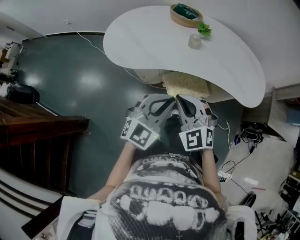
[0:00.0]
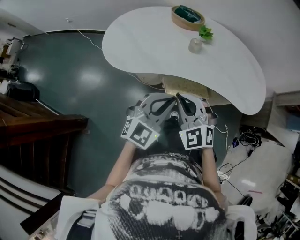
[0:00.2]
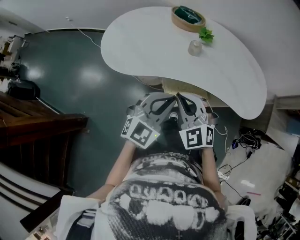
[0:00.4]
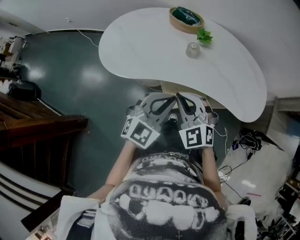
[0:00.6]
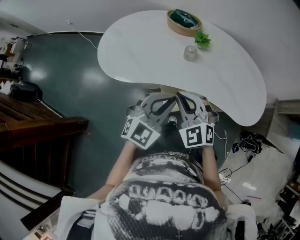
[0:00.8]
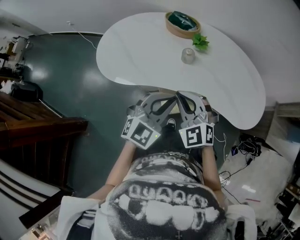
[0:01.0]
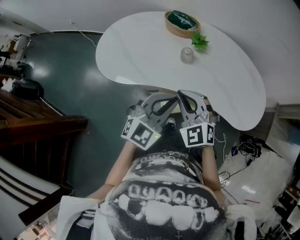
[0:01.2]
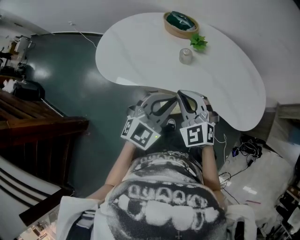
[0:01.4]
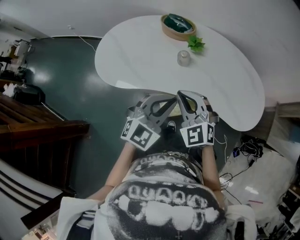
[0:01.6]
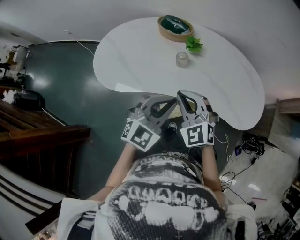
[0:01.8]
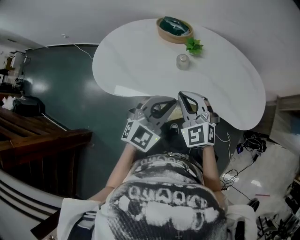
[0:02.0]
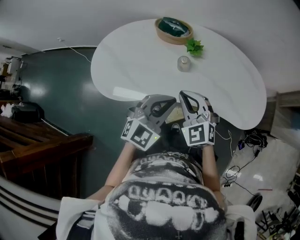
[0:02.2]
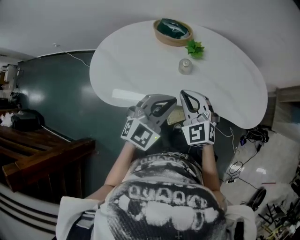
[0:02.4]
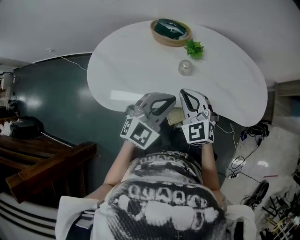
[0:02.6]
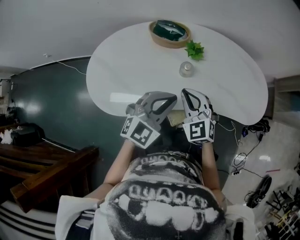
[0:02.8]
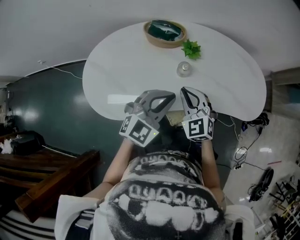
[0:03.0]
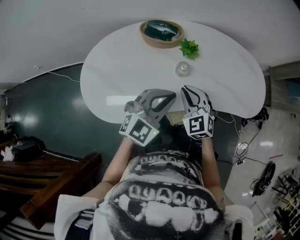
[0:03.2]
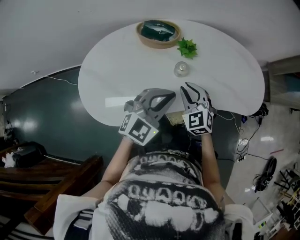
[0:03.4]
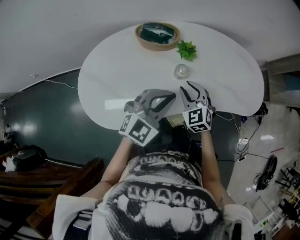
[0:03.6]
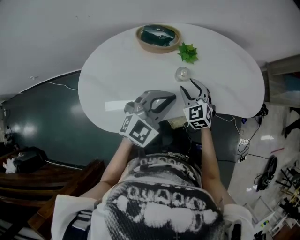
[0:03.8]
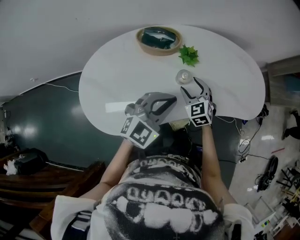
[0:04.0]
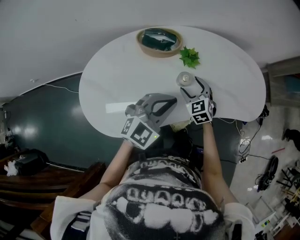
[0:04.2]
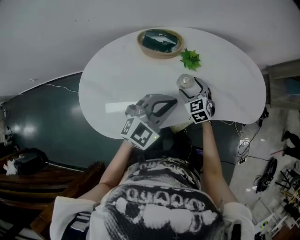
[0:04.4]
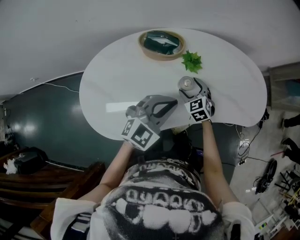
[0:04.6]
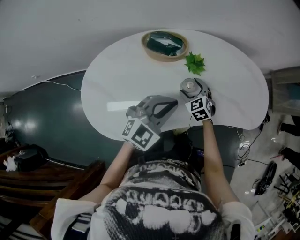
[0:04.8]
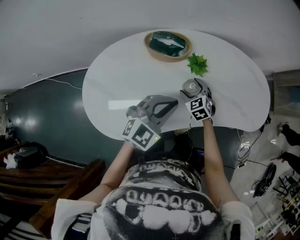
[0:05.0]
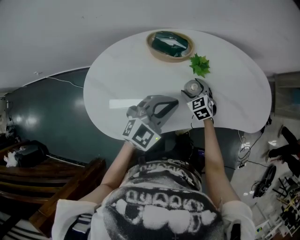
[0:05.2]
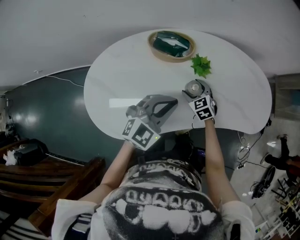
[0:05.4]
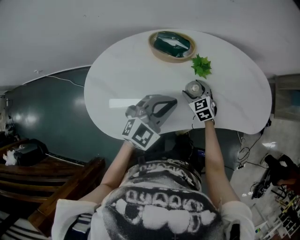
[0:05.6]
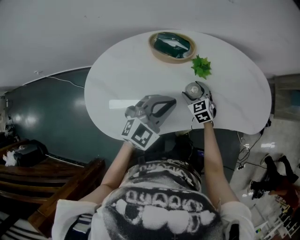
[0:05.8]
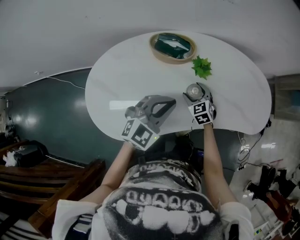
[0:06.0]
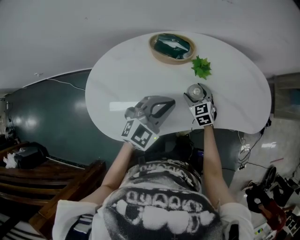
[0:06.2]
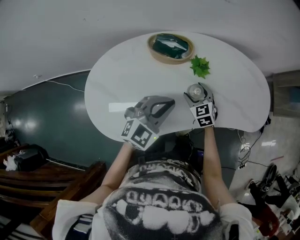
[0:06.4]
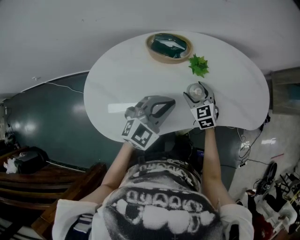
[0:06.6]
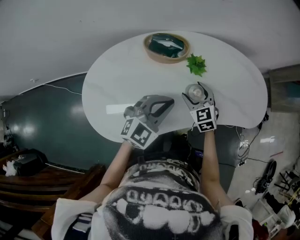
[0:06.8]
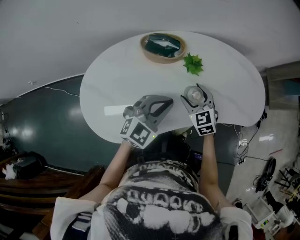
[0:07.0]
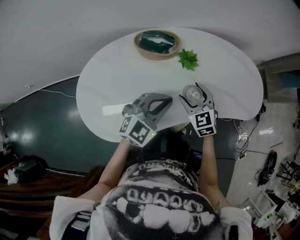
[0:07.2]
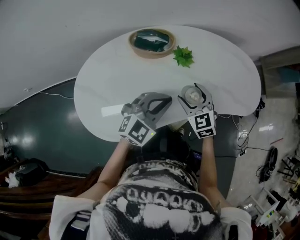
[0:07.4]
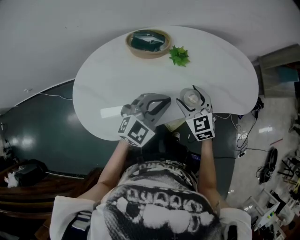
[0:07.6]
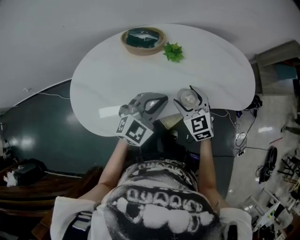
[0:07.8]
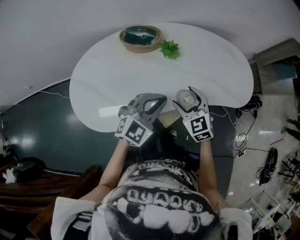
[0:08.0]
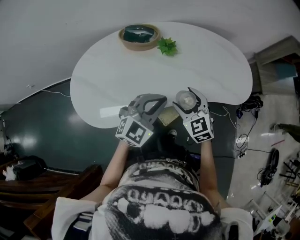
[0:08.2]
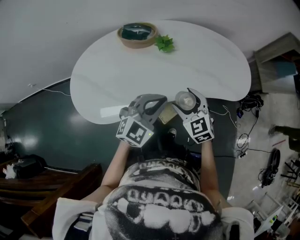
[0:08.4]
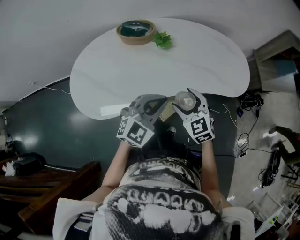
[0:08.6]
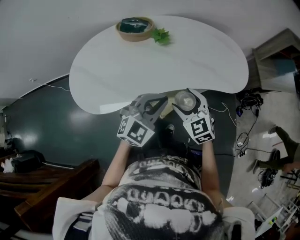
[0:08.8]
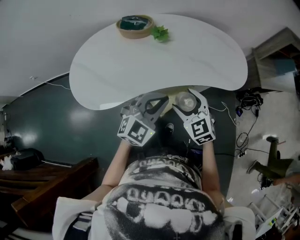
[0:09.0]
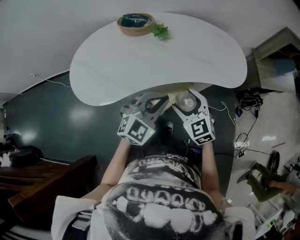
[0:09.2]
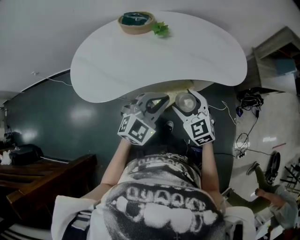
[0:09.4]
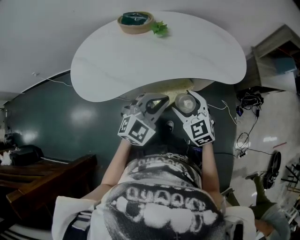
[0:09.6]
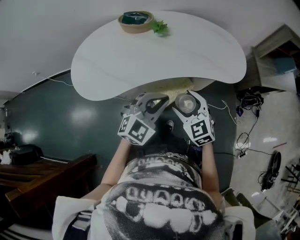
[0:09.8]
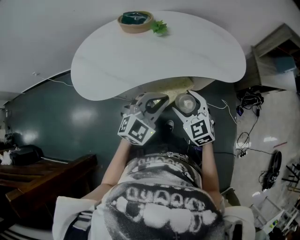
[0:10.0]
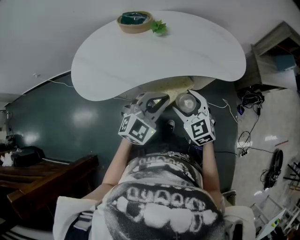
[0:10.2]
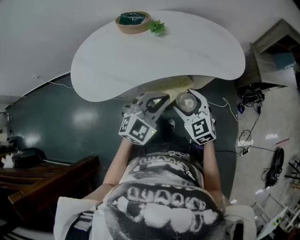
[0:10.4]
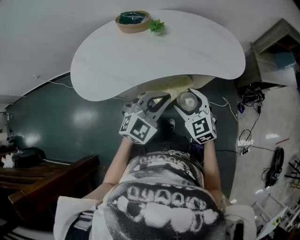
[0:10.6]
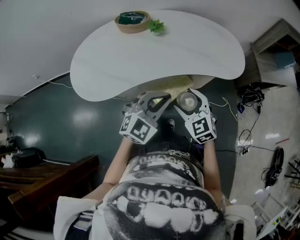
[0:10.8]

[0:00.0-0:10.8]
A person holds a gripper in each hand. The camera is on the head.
0:00.0 to 0:01.6: The grippers both shift forward and to the right by about 15 cm.
0:01.6 to 0:03.0: The left gripper moves forward and to the left, some 15 cm, and turns by about 20 degrees. Meanwhile the right gripper moves forward, to the left and downward, about 15 cm, and swivels some 30 degrees.
0:03.0 to 0:04.6: The right gripper goes approximately 20 cm downward and forward, rotates roughly 20 degrees, and opens. Meanwhile the left gripper heads forward, covering about 5 cm.
0:04.6 to 0:06.2: There are only small adjustments of the grippers.
0:06.2 to 0:07.8: The left gripper is displaced to the right by approximately 10 cm; the right gripper moves upward, backward and to the right, some 15 cm.
0:07.8 to 0:09.2: The grippers both shift backward and to the right by approximately 20 cm.
0:09.2 to 0:10.8: The grippers move only a little.

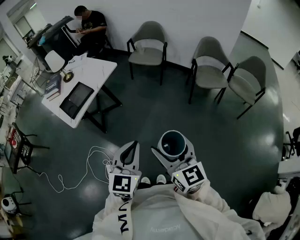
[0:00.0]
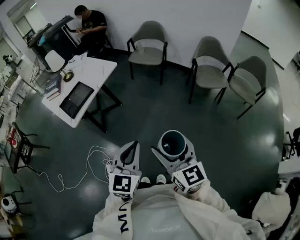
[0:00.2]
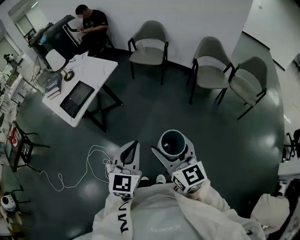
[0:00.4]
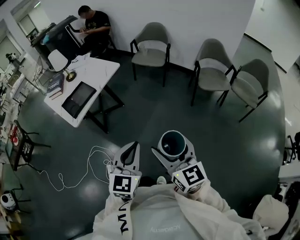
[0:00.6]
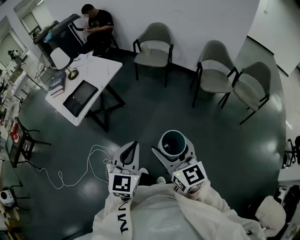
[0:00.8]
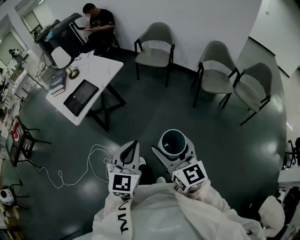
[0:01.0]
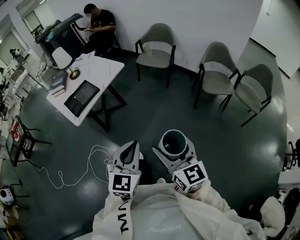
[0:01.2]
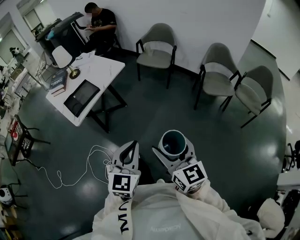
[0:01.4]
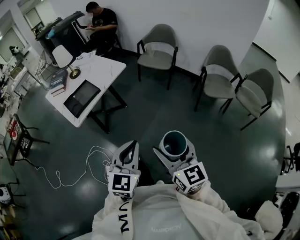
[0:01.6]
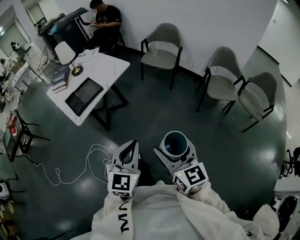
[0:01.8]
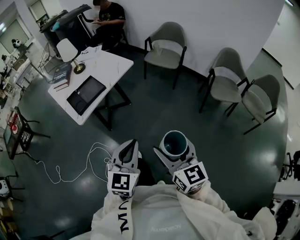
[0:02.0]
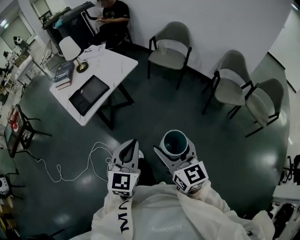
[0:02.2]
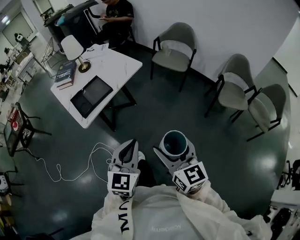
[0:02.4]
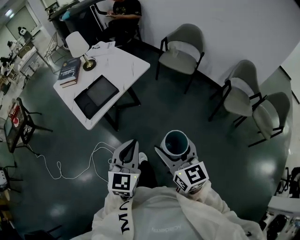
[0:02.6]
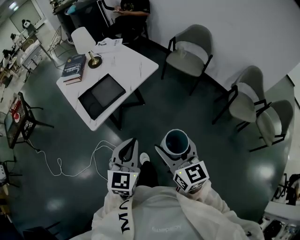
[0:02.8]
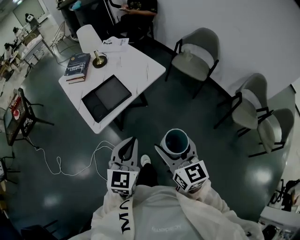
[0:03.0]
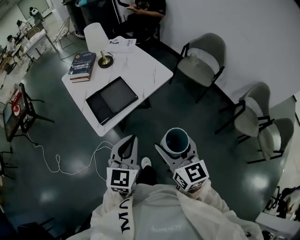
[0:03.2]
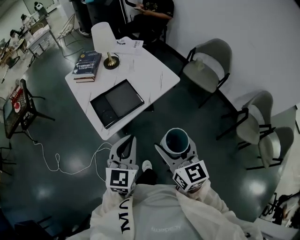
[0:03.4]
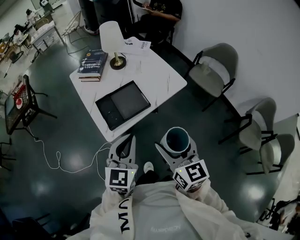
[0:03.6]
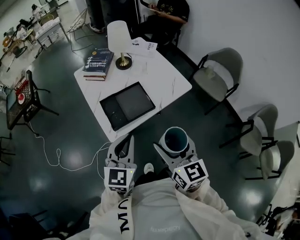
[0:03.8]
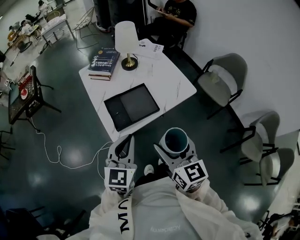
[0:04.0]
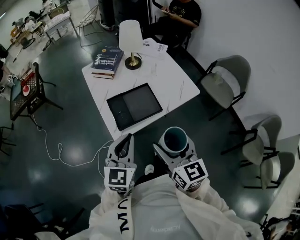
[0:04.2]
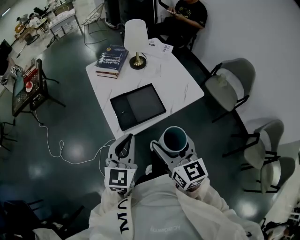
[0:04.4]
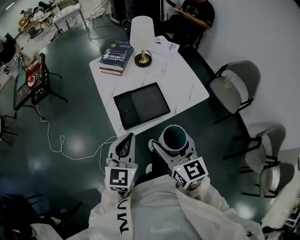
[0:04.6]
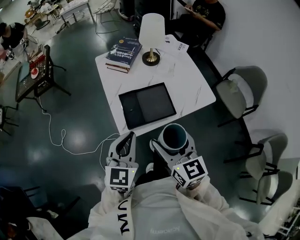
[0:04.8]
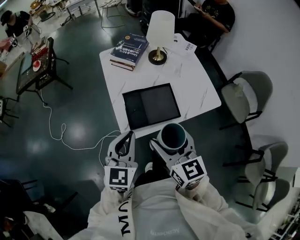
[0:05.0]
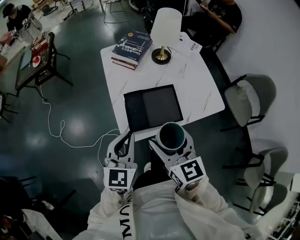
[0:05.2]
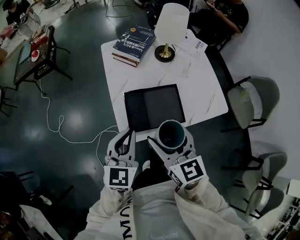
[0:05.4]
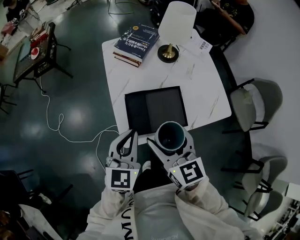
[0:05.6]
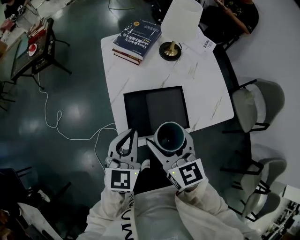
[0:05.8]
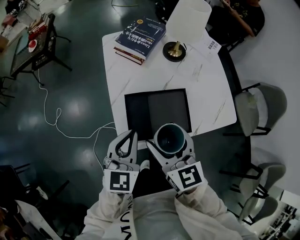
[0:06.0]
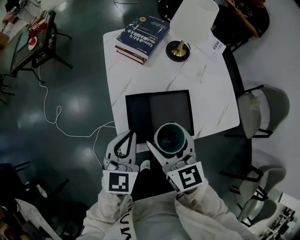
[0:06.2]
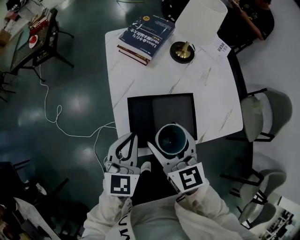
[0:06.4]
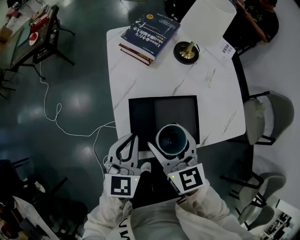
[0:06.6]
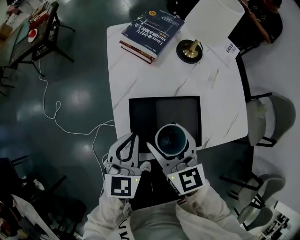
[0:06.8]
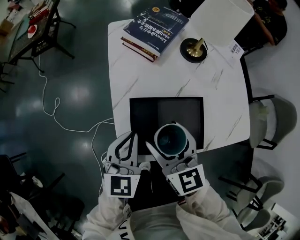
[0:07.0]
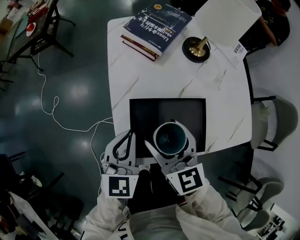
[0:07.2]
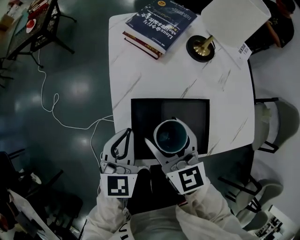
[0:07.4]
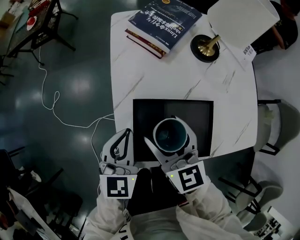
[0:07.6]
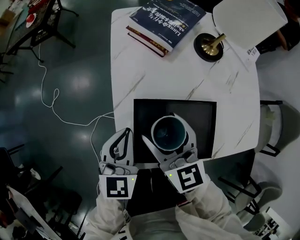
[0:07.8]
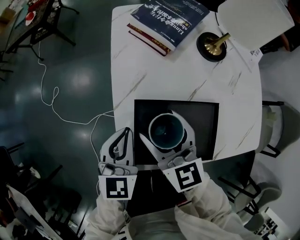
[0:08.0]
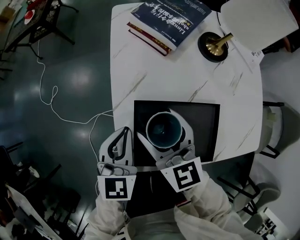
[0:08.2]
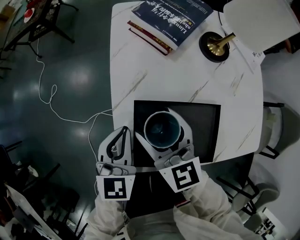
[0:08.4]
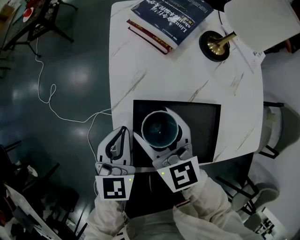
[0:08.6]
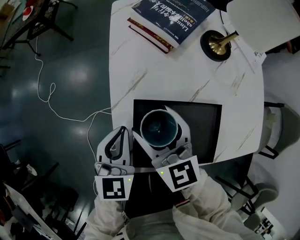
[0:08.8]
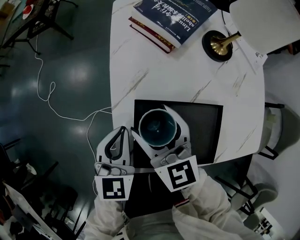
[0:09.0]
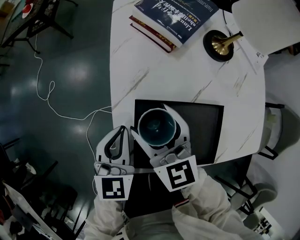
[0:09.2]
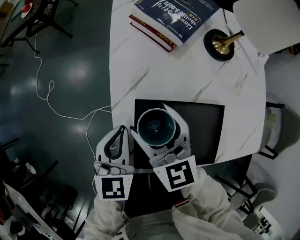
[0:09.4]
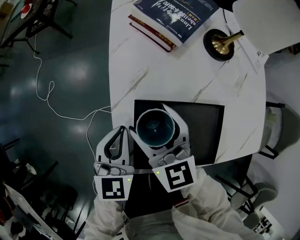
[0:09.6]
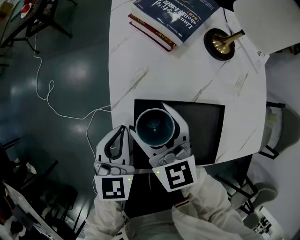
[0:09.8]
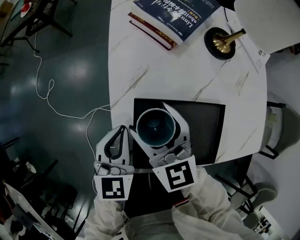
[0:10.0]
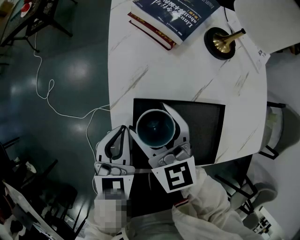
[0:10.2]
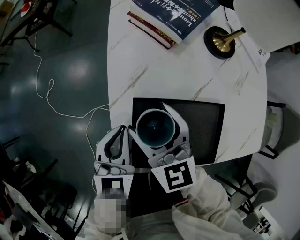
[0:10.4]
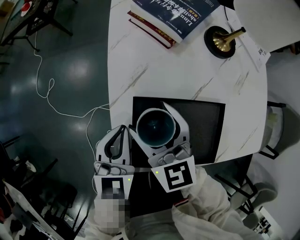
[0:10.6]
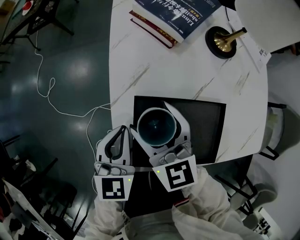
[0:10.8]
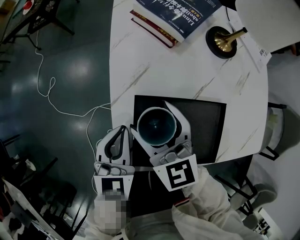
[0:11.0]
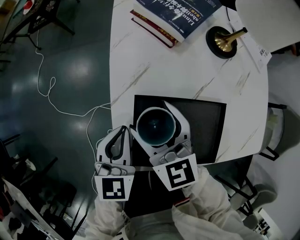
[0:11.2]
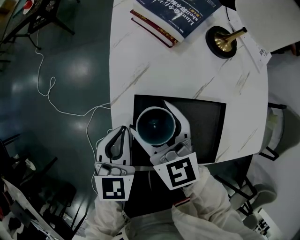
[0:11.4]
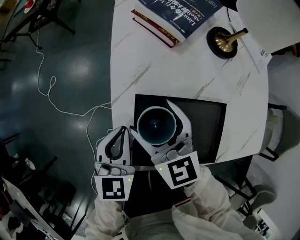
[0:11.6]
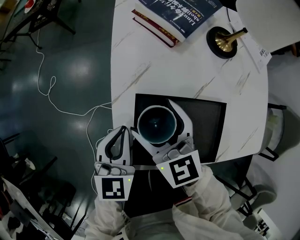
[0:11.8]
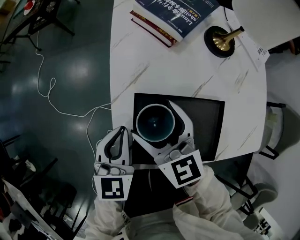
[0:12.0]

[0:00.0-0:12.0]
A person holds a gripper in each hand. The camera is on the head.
0:00.0 to 0:01.6: The right gripper shifts by roughly 5 cm. Meanwhile the left gripper ends up about 5 cm from where it was.
0:01.6 to 0:03.0: The two grippers go some 30 cm forward and to the left.
0:03.0 to 0:04.4: The right gripper goes some 25 cm forward and to the left. Meanwhile the left gripper shifts about 20 cm to the left and forward.
0:04.4 to 0:06.0: The right gripper heads forward, downward and to the left, covering approximately 25 cm. Meanwhile the left gripper is displaced forward and downward by some 20 cm.
0:06.0 to 0:07.6: Both grippers travel together downward and forward, about 15 cm.
0:07.6 to 0:09.0: The right gripper changes place by some 5 cm.
0:09.0 to 0:12.0: The grippers stay close to where they were, moving slightly.

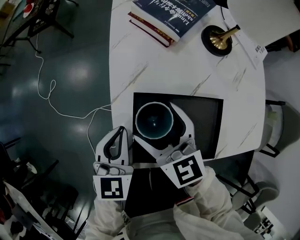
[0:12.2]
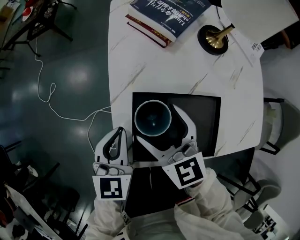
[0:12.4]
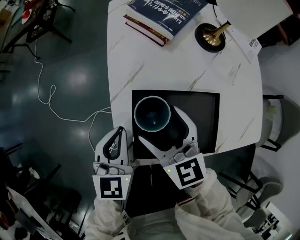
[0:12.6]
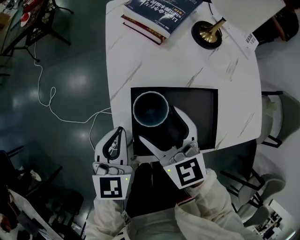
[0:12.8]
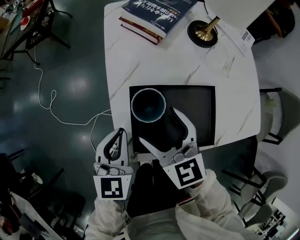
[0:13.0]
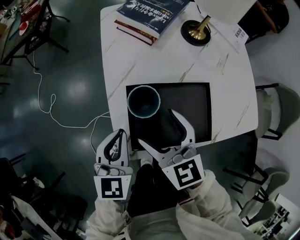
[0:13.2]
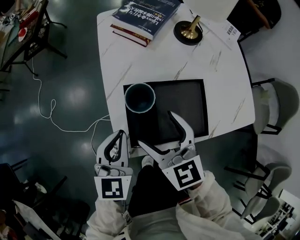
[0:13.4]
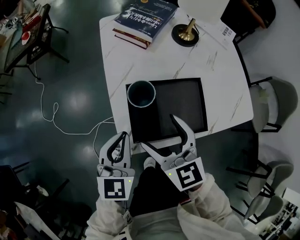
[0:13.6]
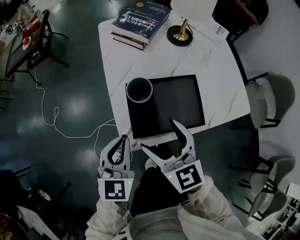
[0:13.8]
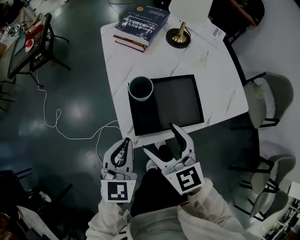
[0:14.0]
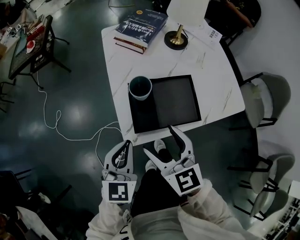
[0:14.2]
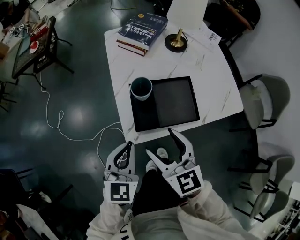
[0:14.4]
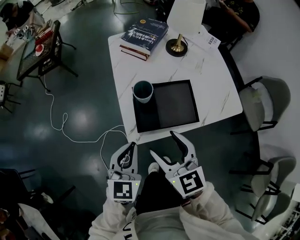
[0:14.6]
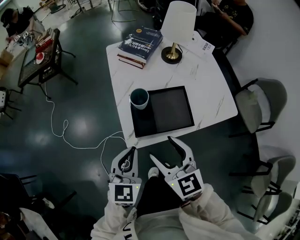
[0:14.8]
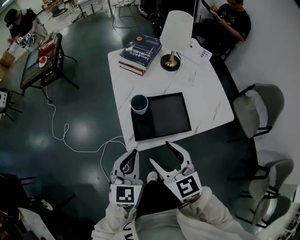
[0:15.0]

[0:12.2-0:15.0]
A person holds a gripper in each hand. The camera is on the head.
0:12.2 to 0:13.6: The grippers both shift backward and upward by roughly 10 cm.
0:13.6 to 0:15.0: Both grippers travel together backward and upward, about 15 cm.
